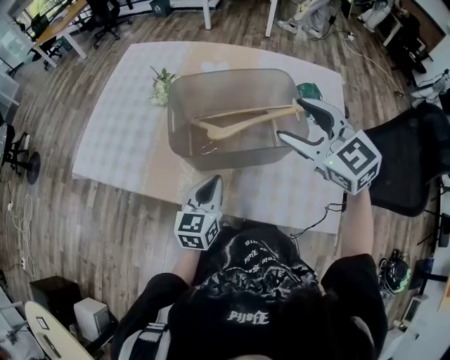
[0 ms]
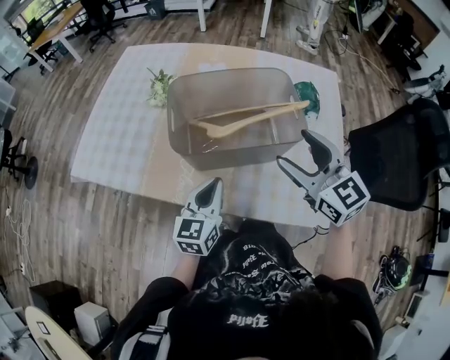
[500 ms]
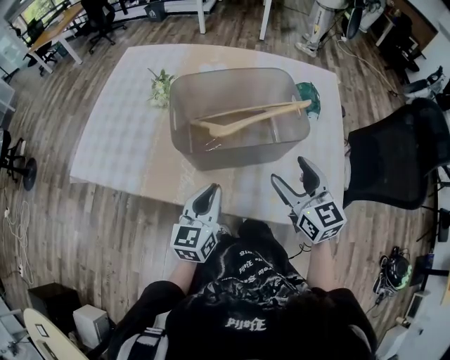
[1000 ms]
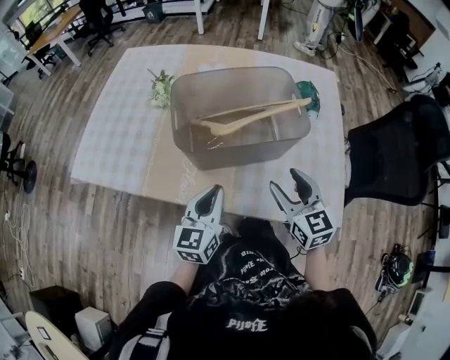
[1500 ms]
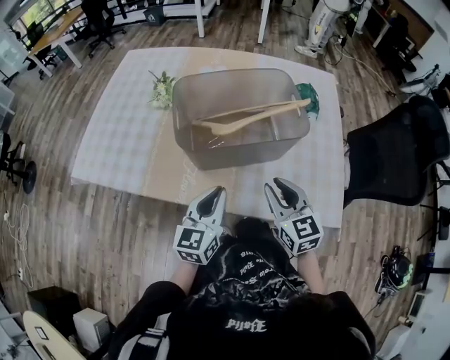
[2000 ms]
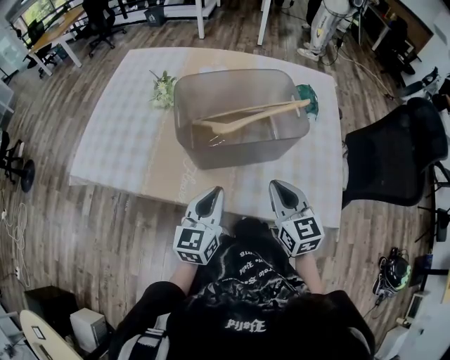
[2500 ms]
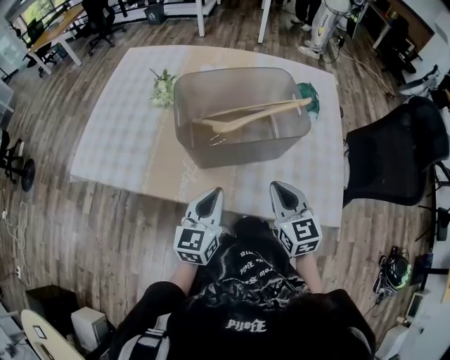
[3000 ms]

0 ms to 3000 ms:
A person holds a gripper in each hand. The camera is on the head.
0 ms to 1500 ms: The right gripper moves downward and backward, some 20 cm, and changes its angle by some 30 degrees.
1500 ms to 3000 ms: The right gripper closes its fingers.

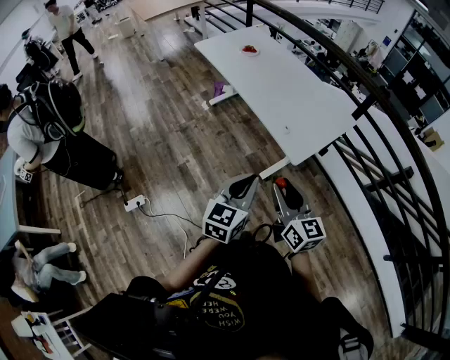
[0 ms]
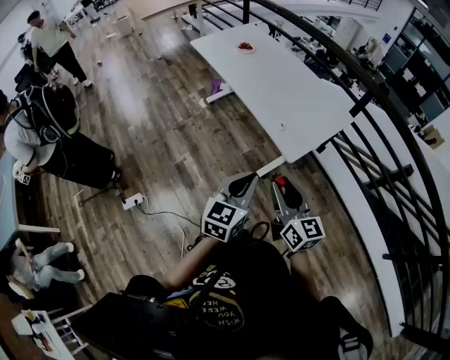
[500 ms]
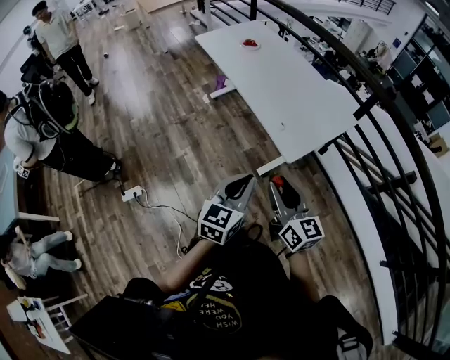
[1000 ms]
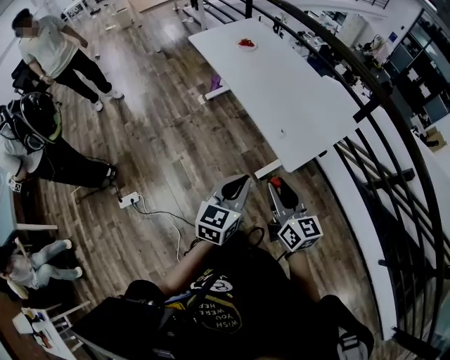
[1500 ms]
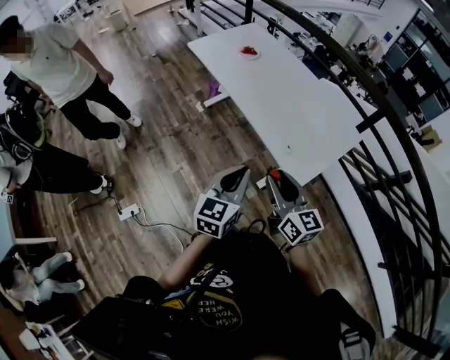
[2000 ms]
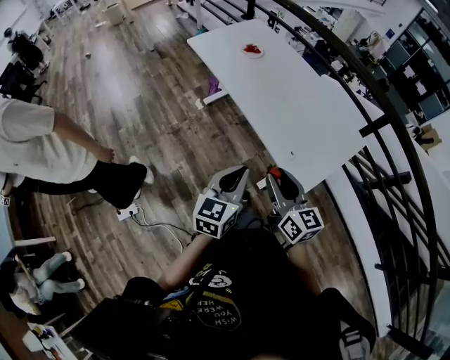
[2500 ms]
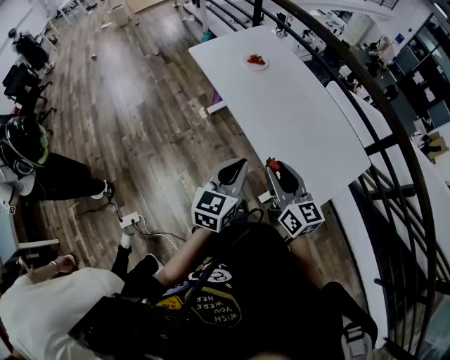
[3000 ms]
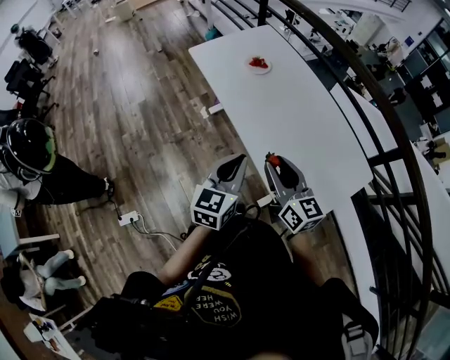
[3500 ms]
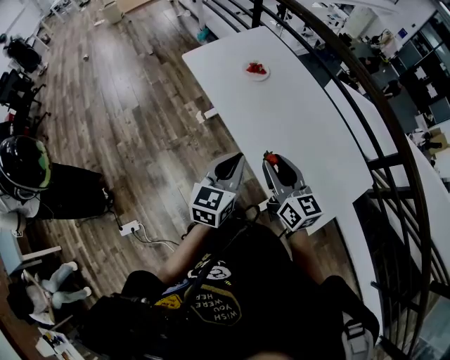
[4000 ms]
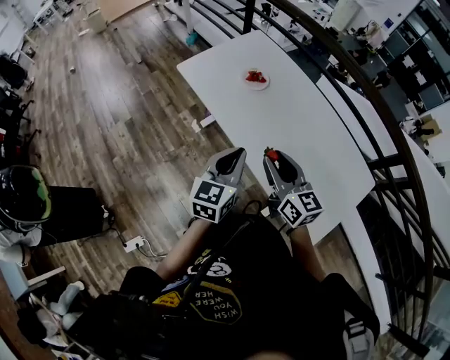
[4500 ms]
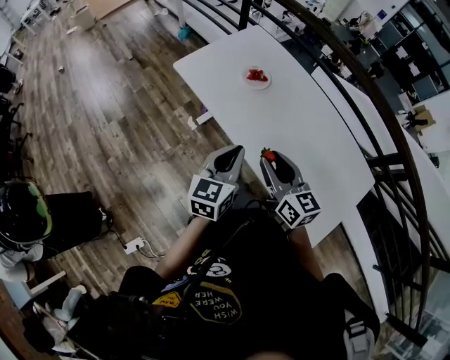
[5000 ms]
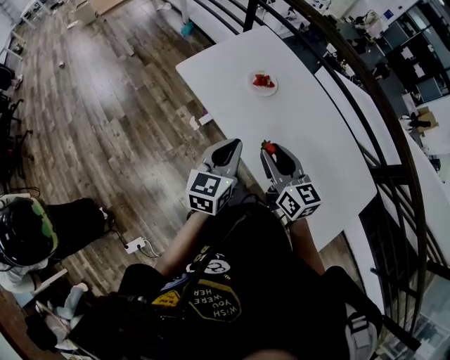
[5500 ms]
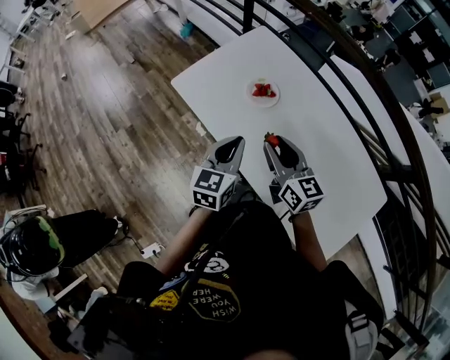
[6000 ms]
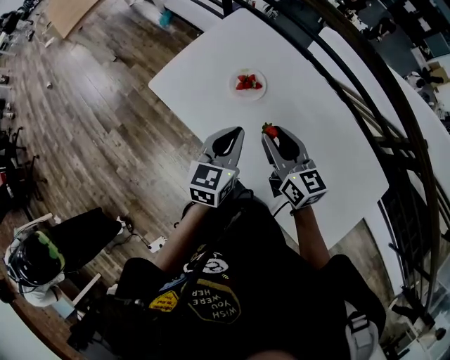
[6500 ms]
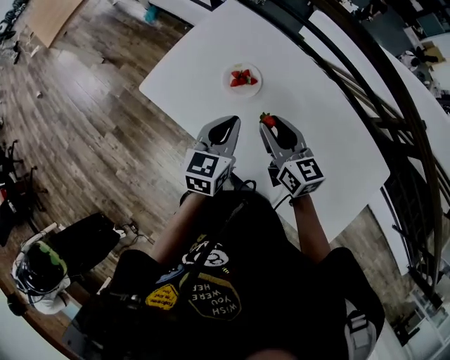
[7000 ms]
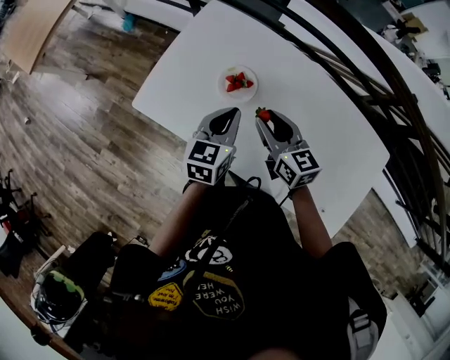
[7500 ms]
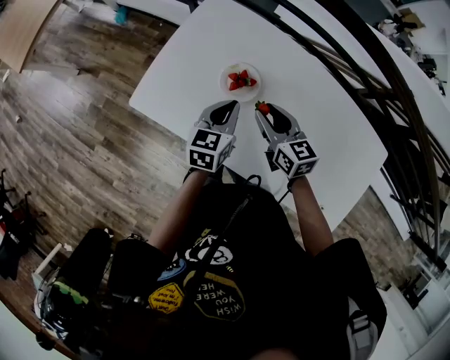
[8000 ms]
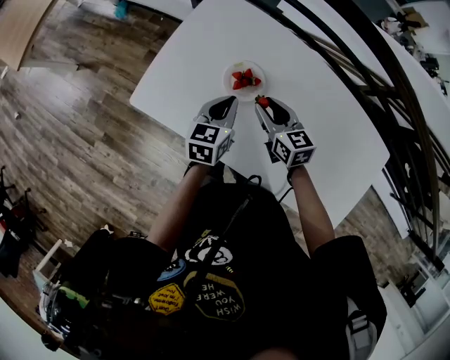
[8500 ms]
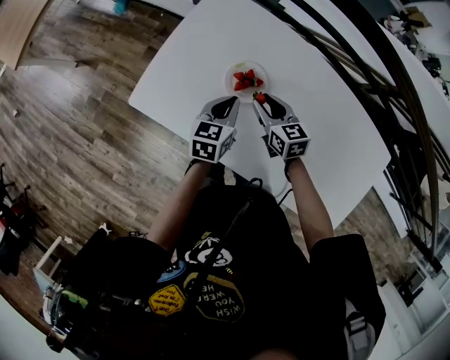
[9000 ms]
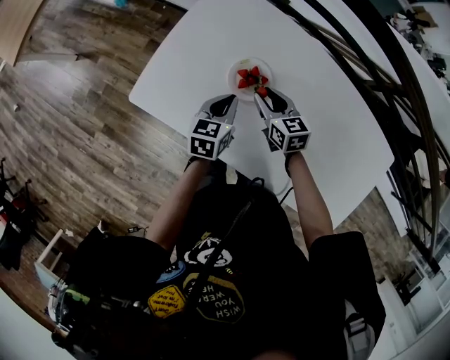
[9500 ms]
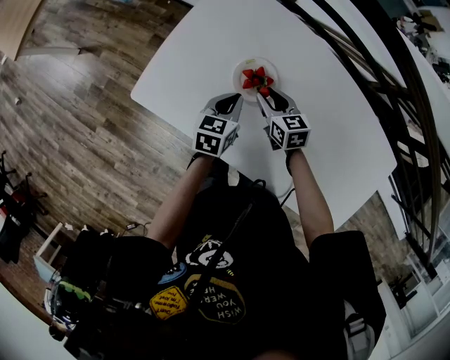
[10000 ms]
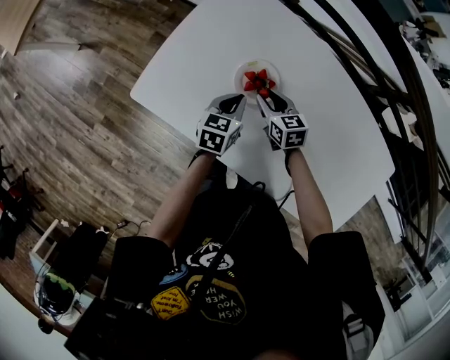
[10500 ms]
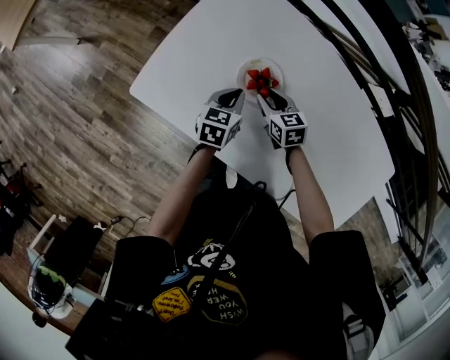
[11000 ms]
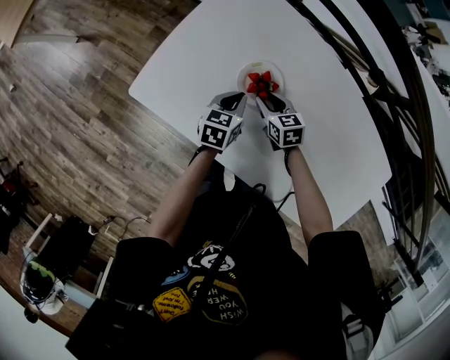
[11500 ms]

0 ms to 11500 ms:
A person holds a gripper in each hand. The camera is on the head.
0 ms to 2000 ms: The grippers both shift forward by some 20 cm.
2000 ms to 4000 ms: Both grippers move forward, some 35 cm.
4000 ms to 6000 ms: Both grippers travel together forward, roughly 30 cm.
6000 ms to 7500 ms: The right gripper moves forward and downward, roughly 15 cm; the left gripper heads forward, covering about 20 cm.
7500 ms to 9500 ms: The right gripper is displaced downward and forward by approximately 15 cm. Meanwhile the left gripper heads downward, covering some 15 cm.
9500 ms to 11500 ms: The grippers both shift downward by roughly 10 cm.

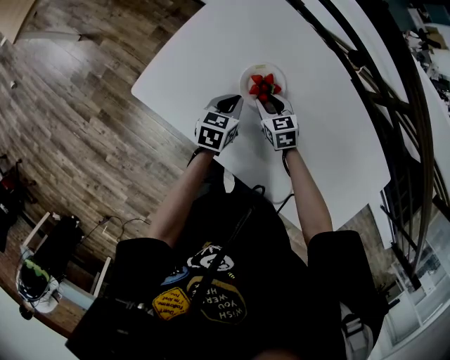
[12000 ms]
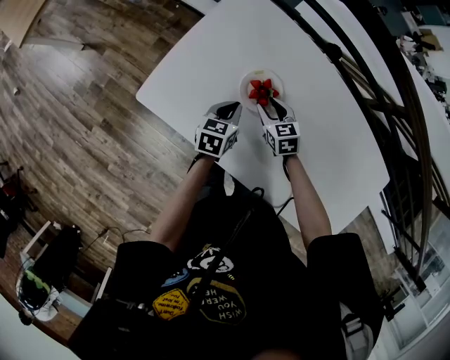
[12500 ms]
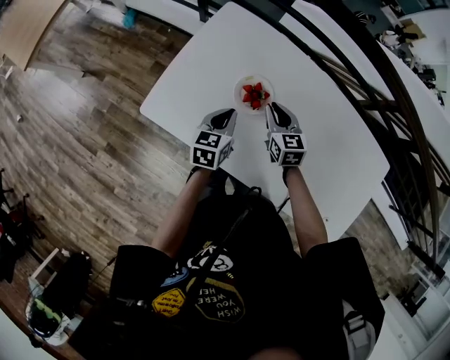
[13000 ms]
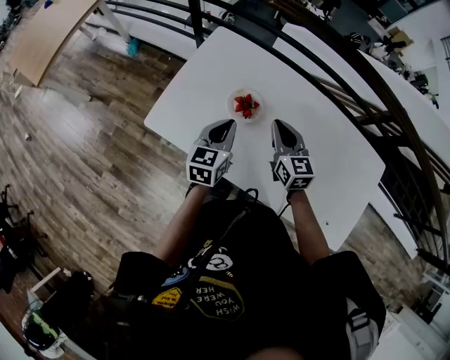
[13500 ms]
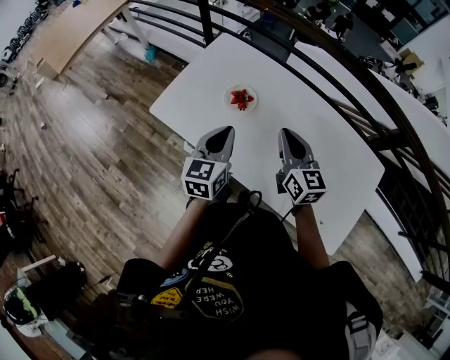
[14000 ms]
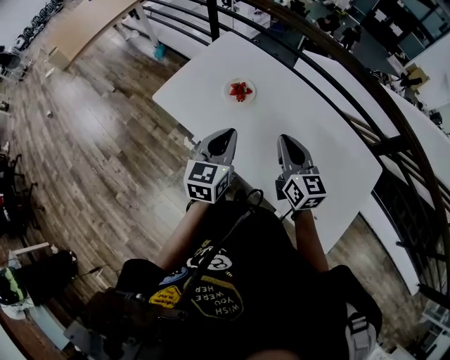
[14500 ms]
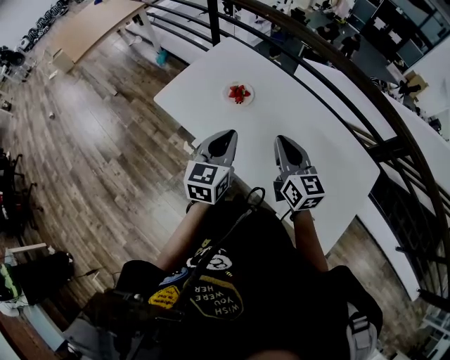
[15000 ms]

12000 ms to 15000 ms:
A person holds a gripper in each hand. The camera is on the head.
12000 ms to 13500 ms: Both grippers travel together upward, roughly 25 cm. The right gripper points its fingers roughly 30 degrees further upward, and closes. The left gripper swivels roughly 20 degrees.
13500 ms to 15000 ms: Both grippers travel together backward, upward and to the right, approximately 25 cm.

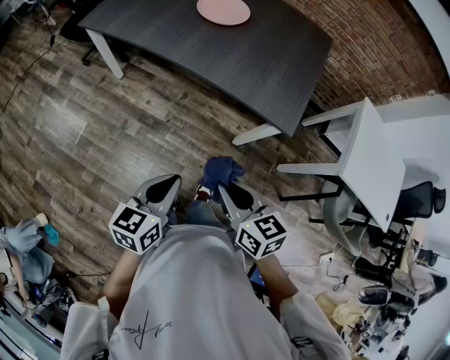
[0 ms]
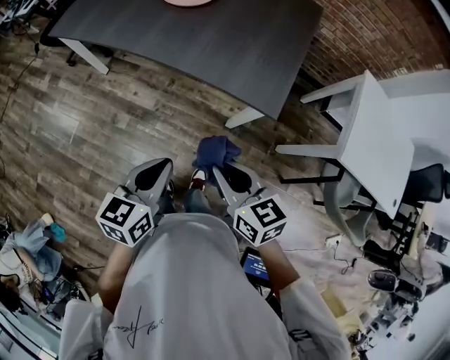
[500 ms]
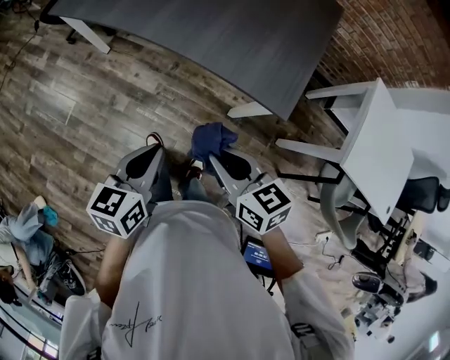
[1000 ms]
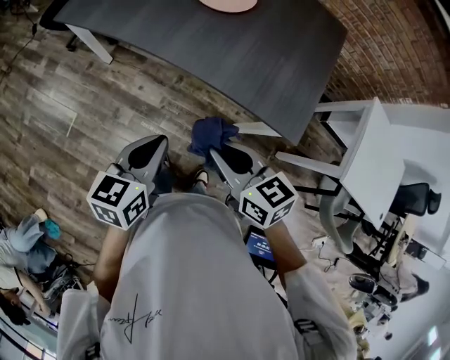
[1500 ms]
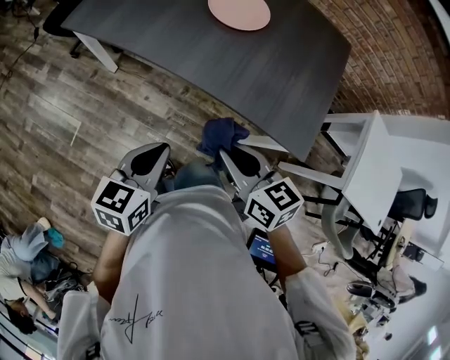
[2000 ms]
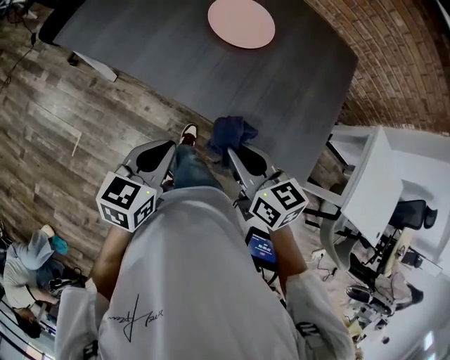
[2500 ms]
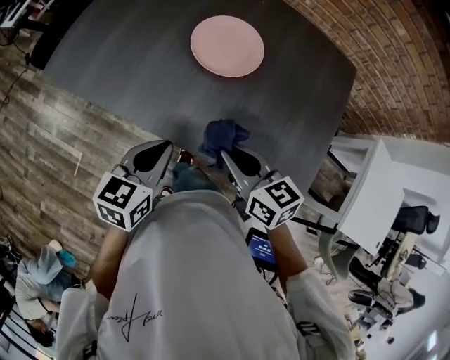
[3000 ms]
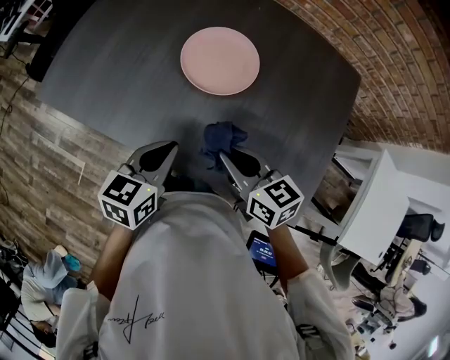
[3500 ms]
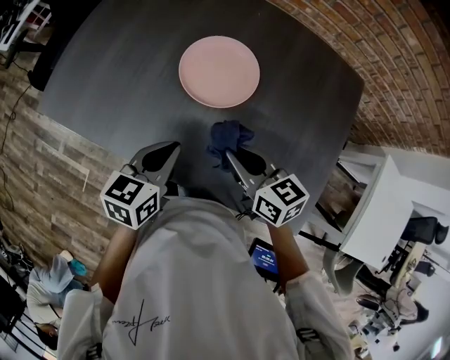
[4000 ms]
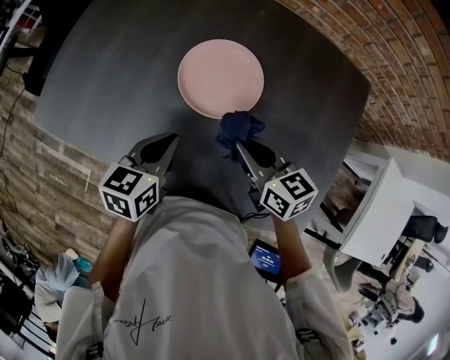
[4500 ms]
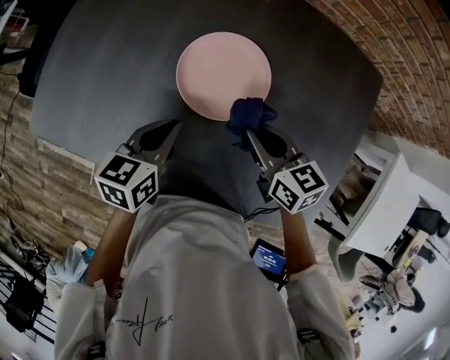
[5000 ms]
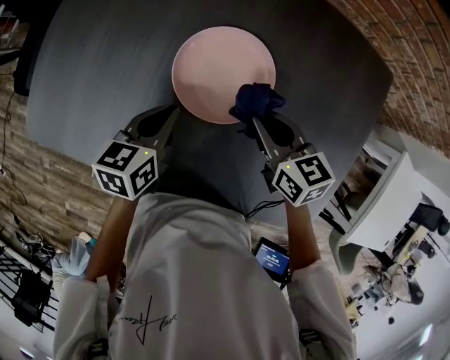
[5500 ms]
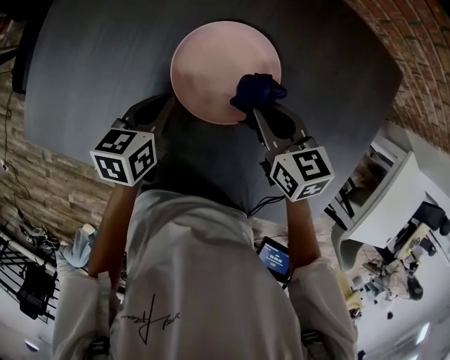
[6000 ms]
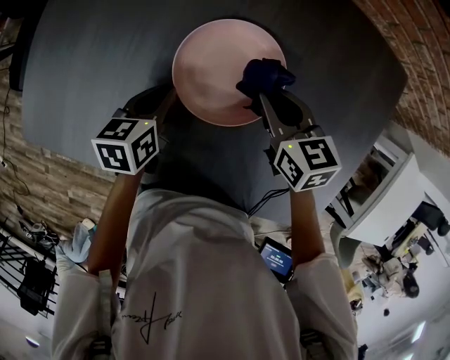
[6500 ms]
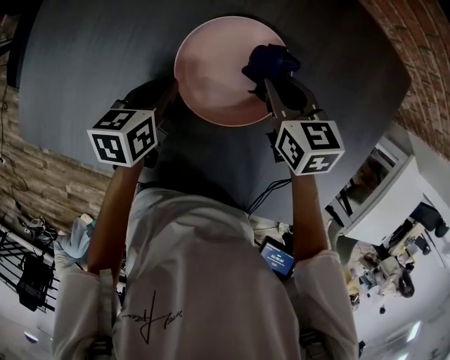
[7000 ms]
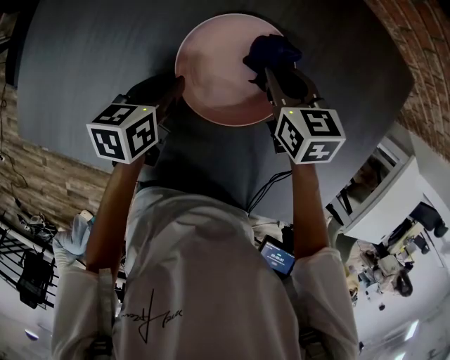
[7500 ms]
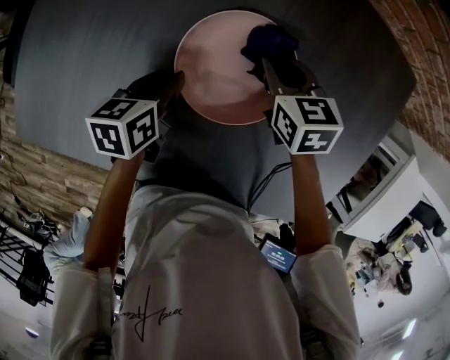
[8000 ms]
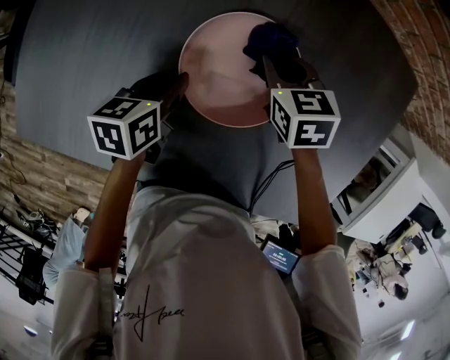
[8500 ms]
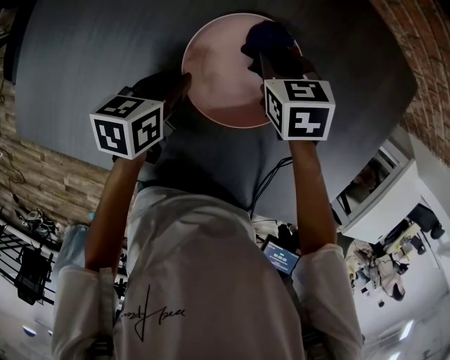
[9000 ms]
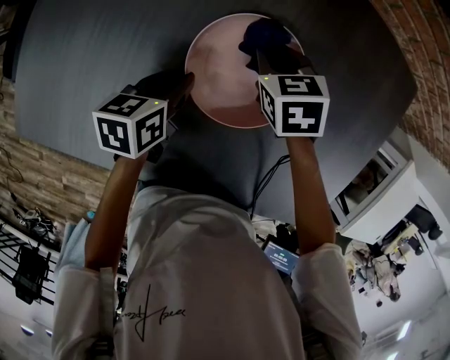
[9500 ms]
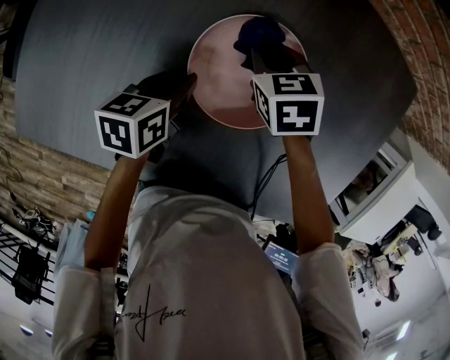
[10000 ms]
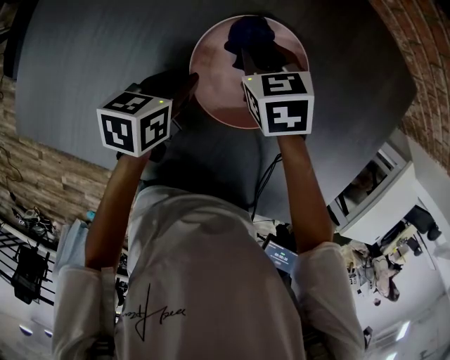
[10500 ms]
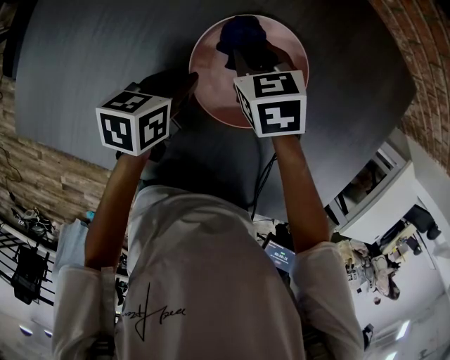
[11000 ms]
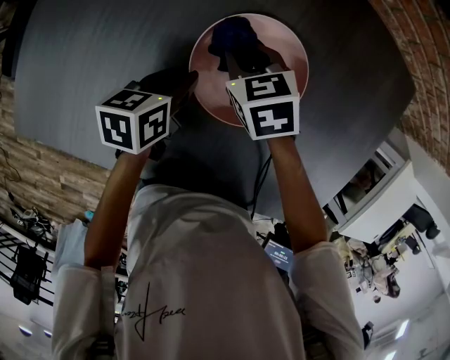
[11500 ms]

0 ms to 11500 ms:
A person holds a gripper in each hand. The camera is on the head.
0 ms to 2000 ms: The grippers both shift forward by some 25 cm.
2000 ms to 4000 ms: The two grippers go some 30 cm forward.
4000 ms to 6000 ms: The left gripper goes some 20 cm forward and downward. The right gripper shifts approximately 20 cm forward.
6000 ms to 7500 ms: The left gripper moves approximately 5 cm, and opens its fingers. The right gripper is displaced forward by some 10 cm.
7500 ms to 9500 ms: The right gripper changes place by some 5 cm.
9500 ms to 11500 ms: The right gripper heads to the left, covering approximately 5 cm.
